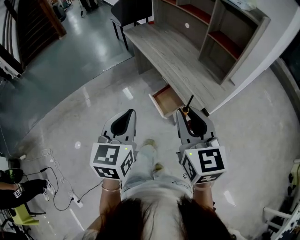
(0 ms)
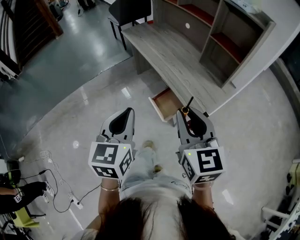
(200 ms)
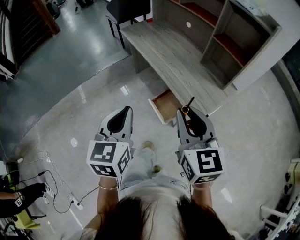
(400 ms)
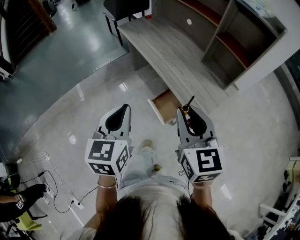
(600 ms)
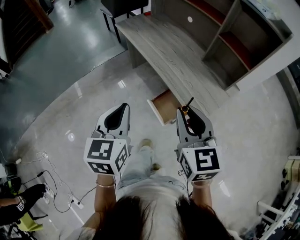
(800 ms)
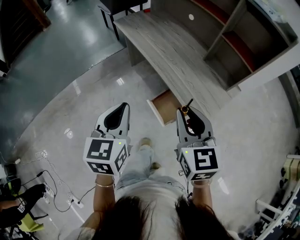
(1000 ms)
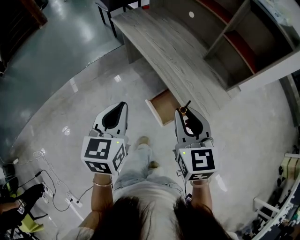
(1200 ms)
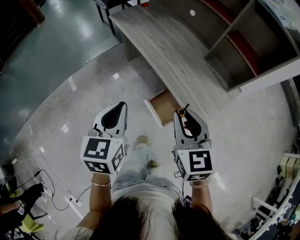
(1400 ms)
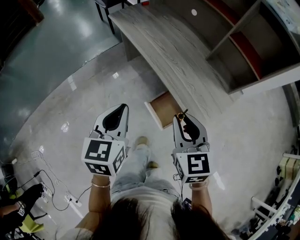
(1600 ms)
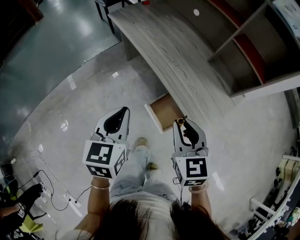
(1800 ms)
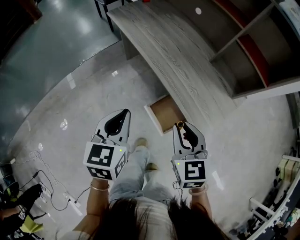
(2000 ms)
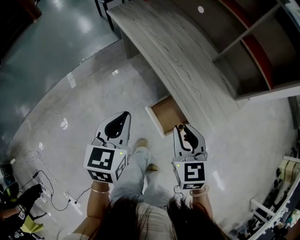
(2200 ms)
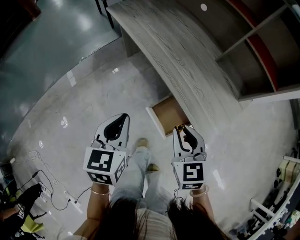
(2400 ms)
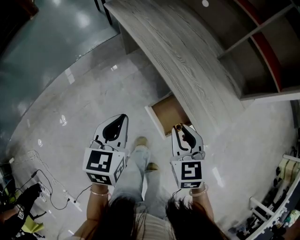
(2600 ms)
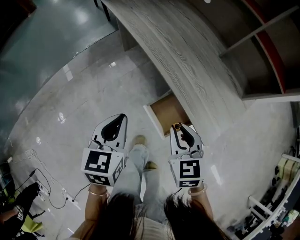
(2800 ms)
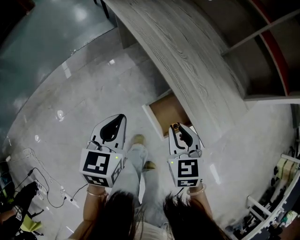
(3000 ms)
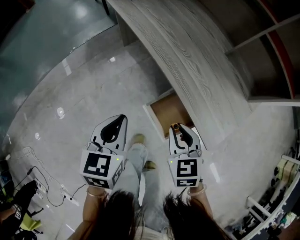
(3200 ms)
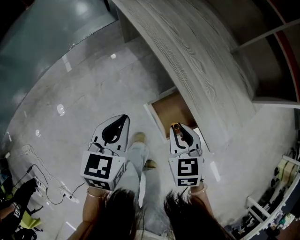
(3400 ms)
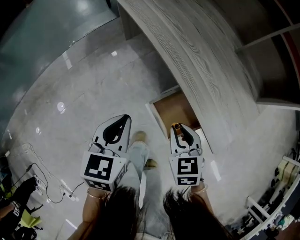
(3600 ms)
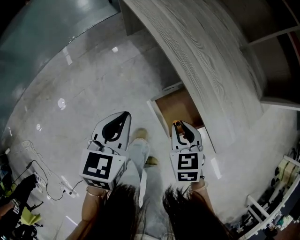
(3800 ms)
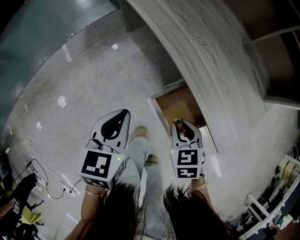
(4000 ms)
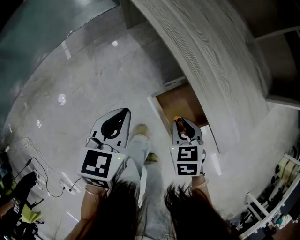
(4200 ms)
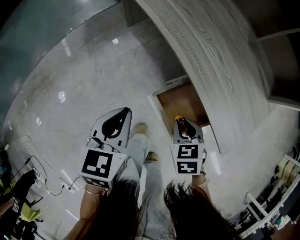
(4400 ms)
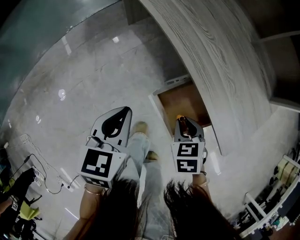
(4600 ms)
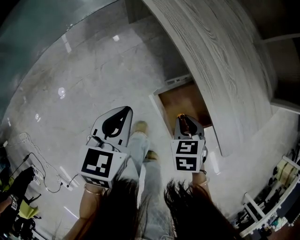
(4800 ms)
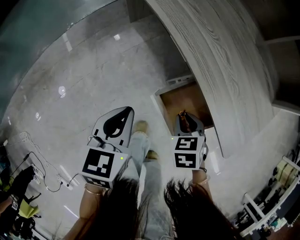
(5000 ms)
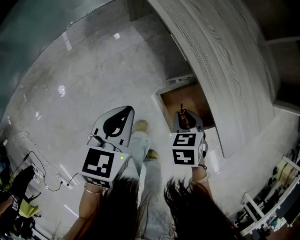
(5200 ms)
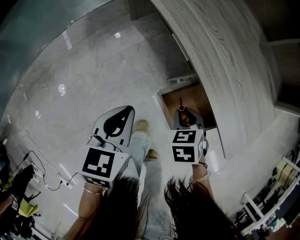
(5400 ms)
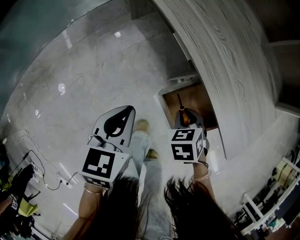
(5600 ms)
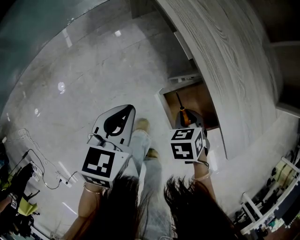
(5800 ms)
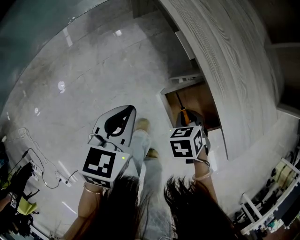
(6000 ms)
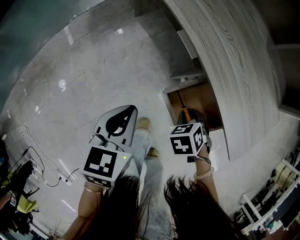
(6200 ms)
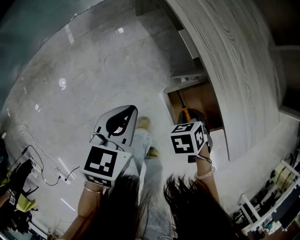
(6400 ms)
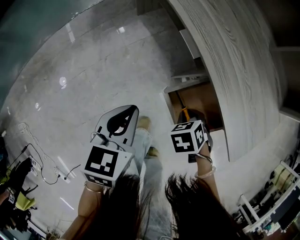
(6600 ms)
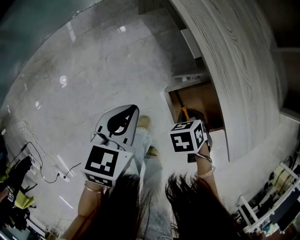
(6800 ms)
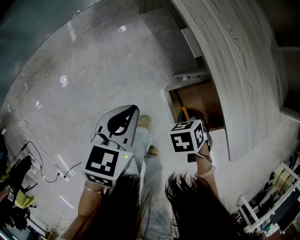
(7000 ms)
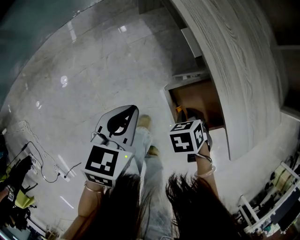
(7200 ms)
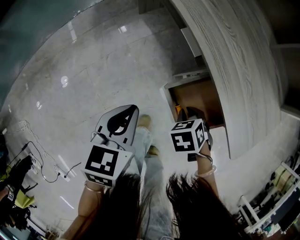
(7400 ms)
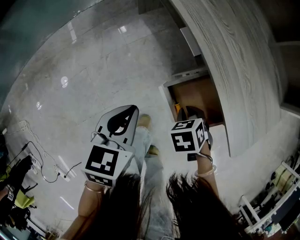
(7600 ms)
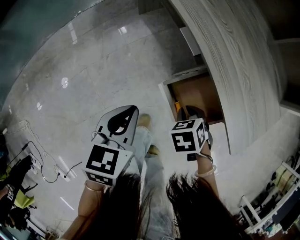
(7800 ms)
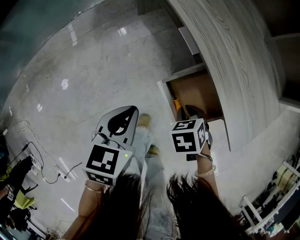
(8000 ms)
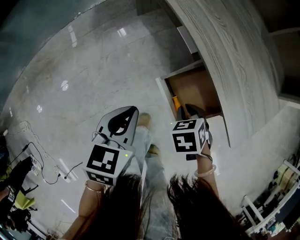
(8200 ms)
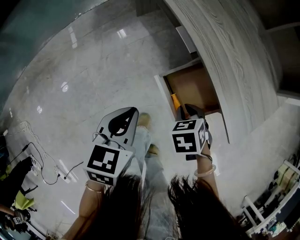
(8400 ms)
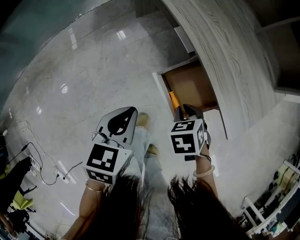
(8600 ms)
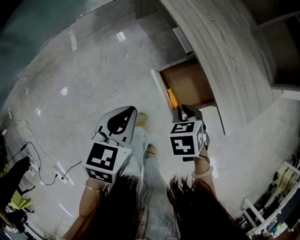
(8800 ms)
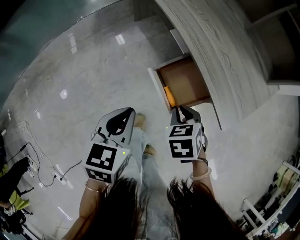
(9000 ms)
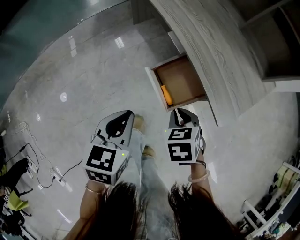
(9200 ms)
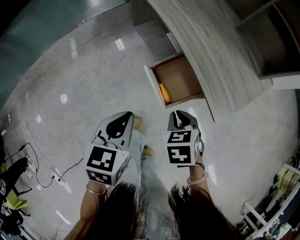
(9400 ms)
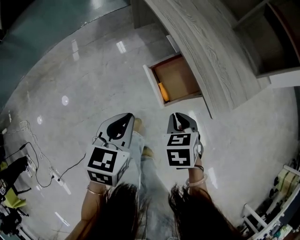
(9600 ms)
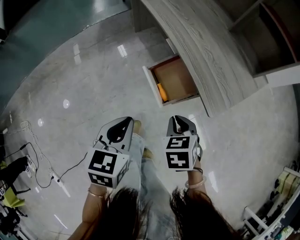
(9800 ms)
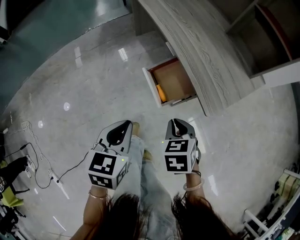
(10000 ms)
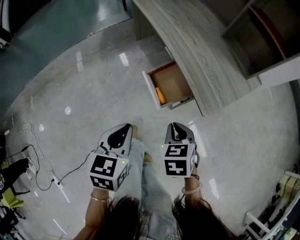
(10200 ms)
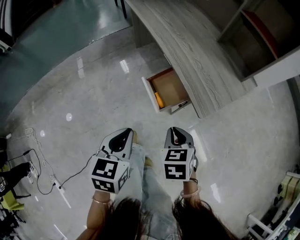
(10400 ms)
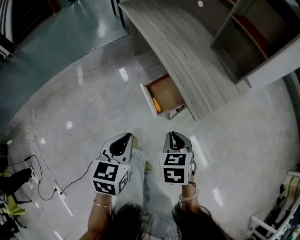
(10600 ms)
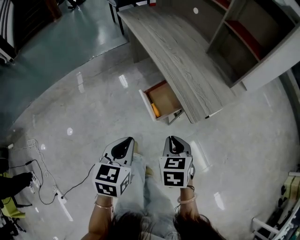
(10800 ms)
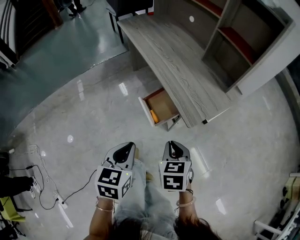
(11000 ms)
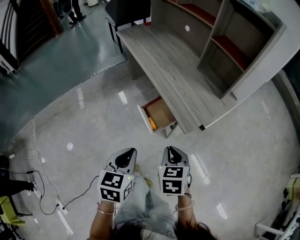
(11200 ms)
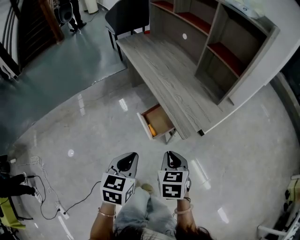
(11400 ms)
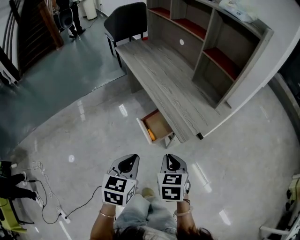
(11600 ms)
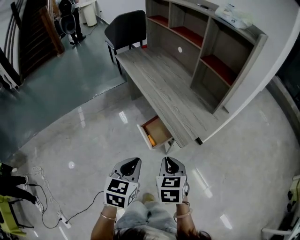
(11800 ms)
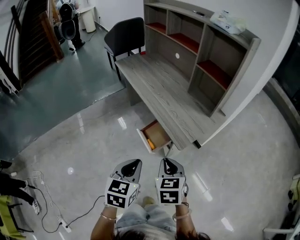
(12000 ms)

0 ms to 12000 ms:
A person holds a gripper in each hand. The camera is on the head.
0 ms to 1600 ms: The two grippers go roughly 20 cm forward and downward.
1600 ms to 3000 ms: The two grippers go about 15 cm downward.
3000 ms to 4400 ms: The left gripper travels downward by some 10 cm. The right gripper goes about 15 cm downward, and swivels approximately 20 degrees.
4400 ms to 6000 ms: The right gripper heads downward, covering roughly 5 cm.
6000 ms to 7600 ms: The grippers move only a little.
7600 ms to 9000 ms: The right gripper is displaced upward by approximately 5 cm, while the left gripper ends up roughly 10 cm from where it was.
9000 ms to 10400 ms: The right gripper moves upward and backward, some 15 cm; the left gripper travels backward and upward by roughly 15 cm.
10400 ms to 12000 ms: The grippers both shift upward by some 15 cm.

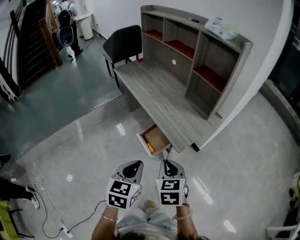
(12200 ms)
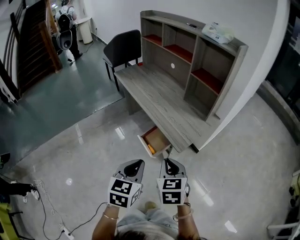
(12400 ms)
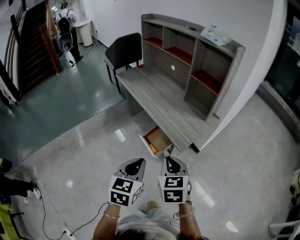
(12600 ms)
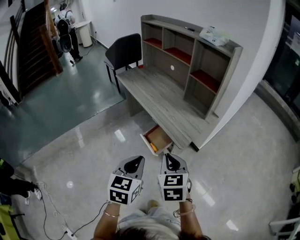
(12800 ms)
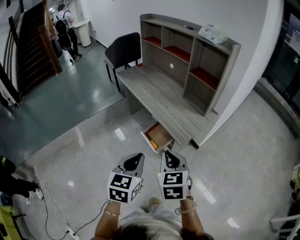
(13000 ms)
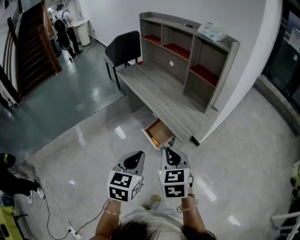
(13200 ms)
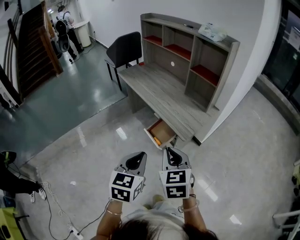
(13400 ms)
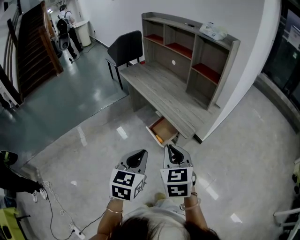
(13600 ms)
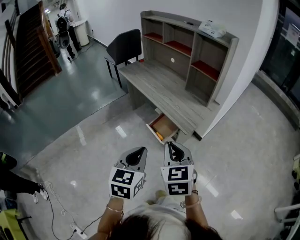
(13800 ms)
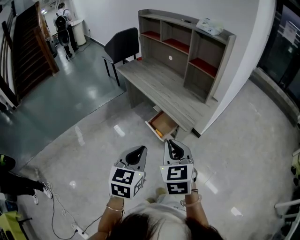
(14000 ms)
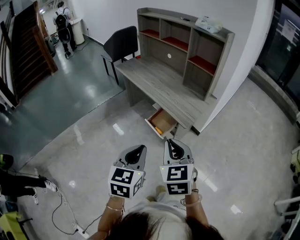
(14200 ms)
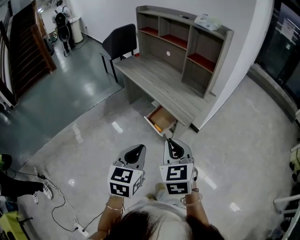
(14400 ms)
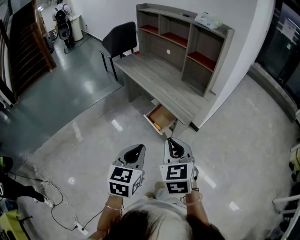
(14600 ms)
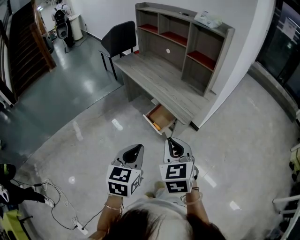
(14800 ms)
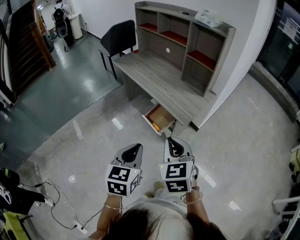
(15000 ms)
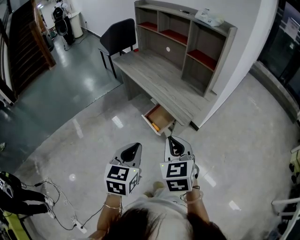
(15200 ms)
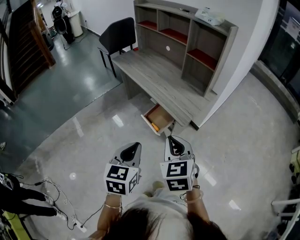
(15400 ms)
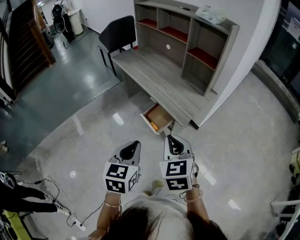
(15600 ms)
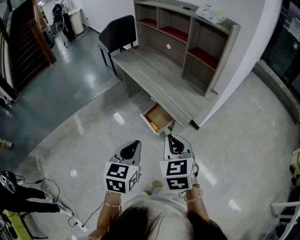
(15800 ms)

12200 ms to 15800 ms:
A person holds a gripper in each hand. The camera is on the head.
12200 ms to 14000 ms: The right gripper moves upward, backward and to the left, roughly 20 cm, while the left gripper is displaced backward, upward and to the left by roughly 15 cm.
14000 ms to 15800 ms: The left gripper moves approximately 5 cm. The right gripper changes place by approximately 5 cm.

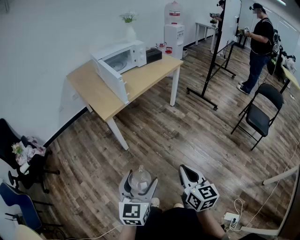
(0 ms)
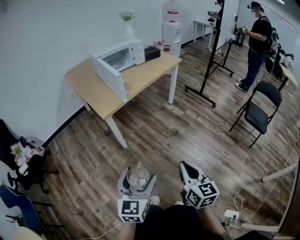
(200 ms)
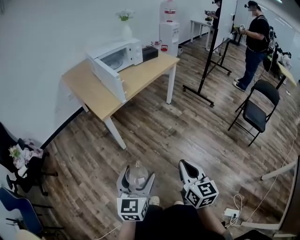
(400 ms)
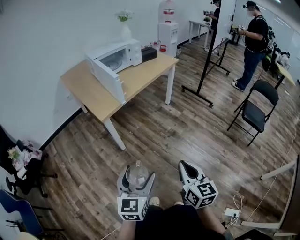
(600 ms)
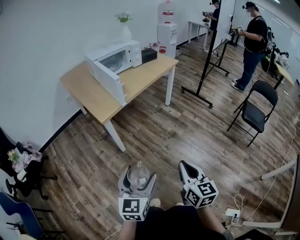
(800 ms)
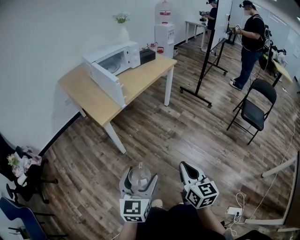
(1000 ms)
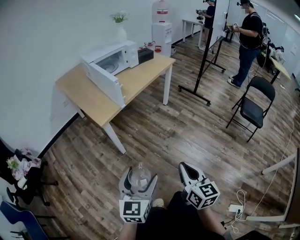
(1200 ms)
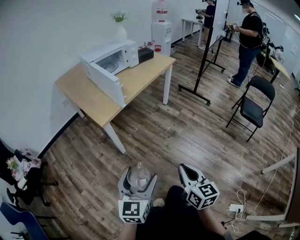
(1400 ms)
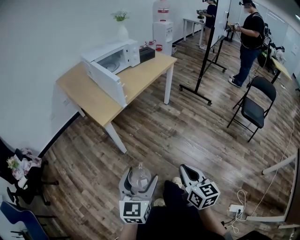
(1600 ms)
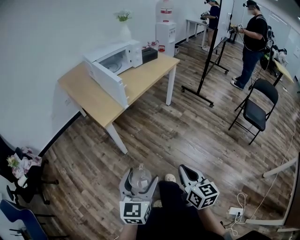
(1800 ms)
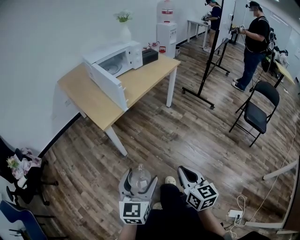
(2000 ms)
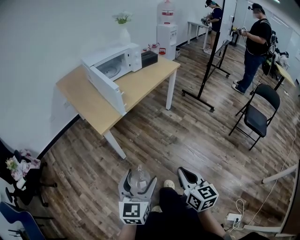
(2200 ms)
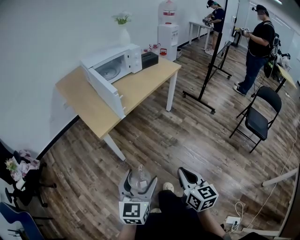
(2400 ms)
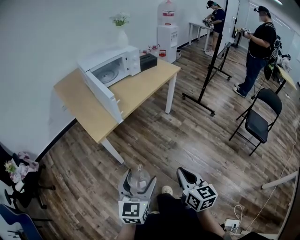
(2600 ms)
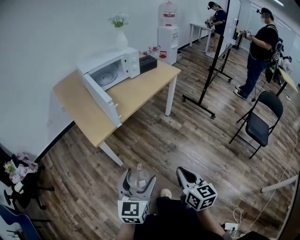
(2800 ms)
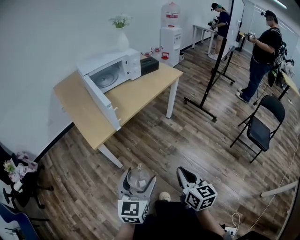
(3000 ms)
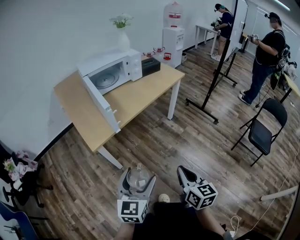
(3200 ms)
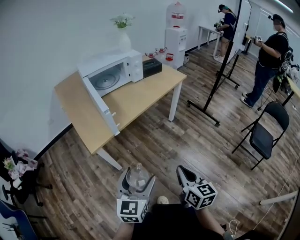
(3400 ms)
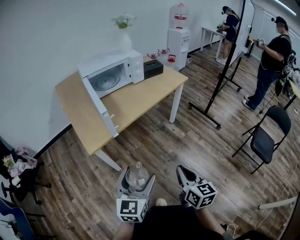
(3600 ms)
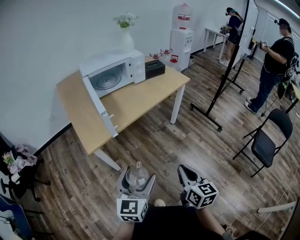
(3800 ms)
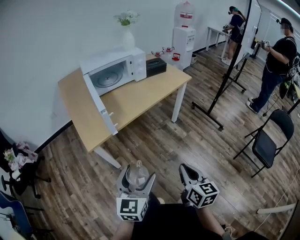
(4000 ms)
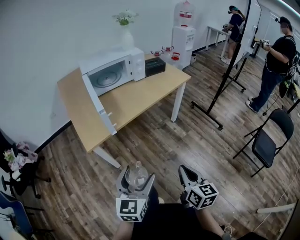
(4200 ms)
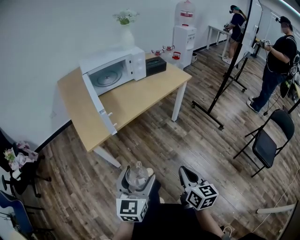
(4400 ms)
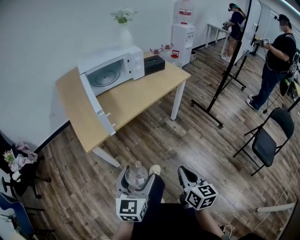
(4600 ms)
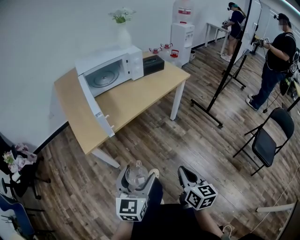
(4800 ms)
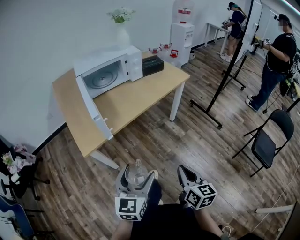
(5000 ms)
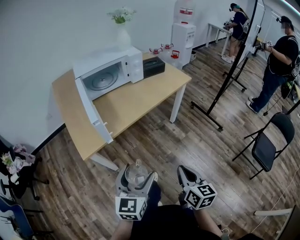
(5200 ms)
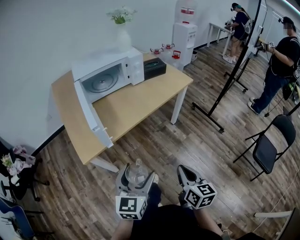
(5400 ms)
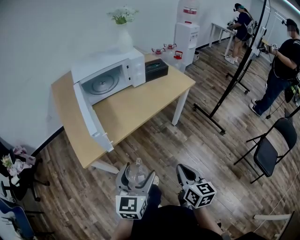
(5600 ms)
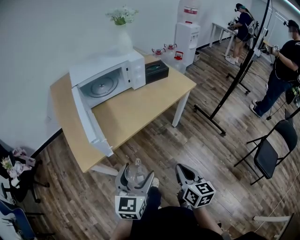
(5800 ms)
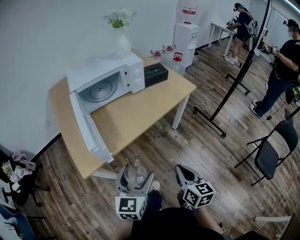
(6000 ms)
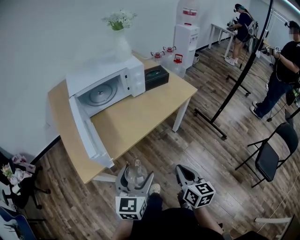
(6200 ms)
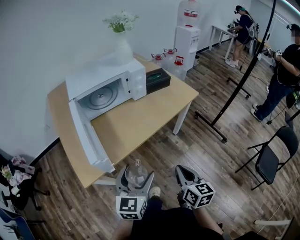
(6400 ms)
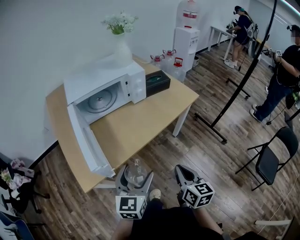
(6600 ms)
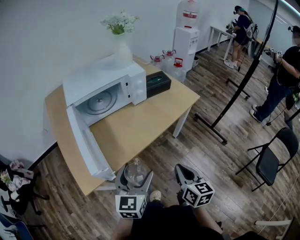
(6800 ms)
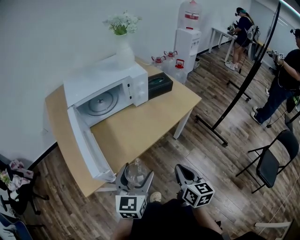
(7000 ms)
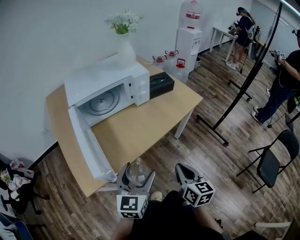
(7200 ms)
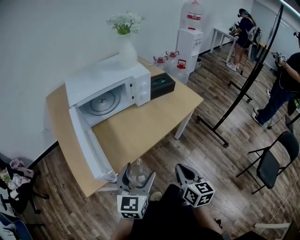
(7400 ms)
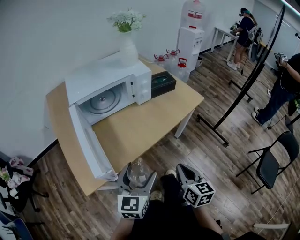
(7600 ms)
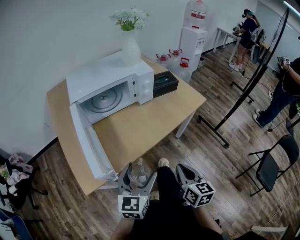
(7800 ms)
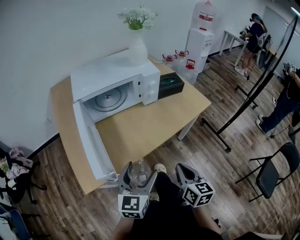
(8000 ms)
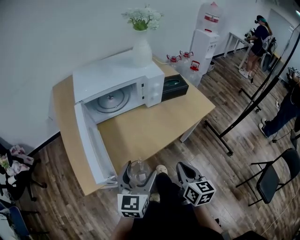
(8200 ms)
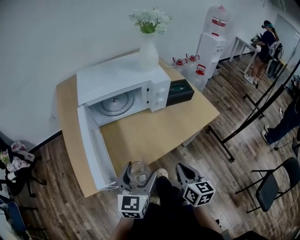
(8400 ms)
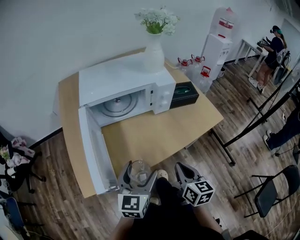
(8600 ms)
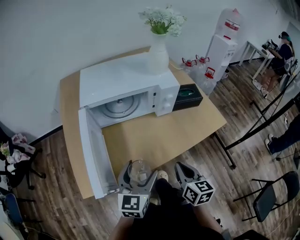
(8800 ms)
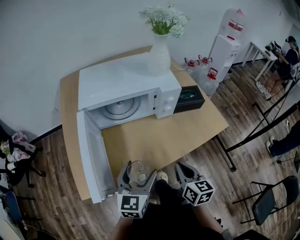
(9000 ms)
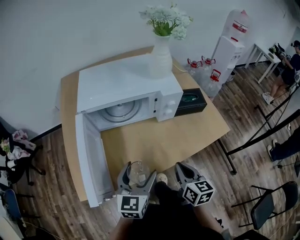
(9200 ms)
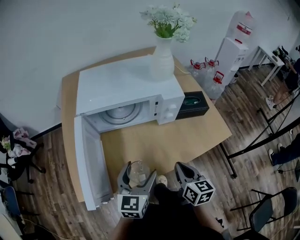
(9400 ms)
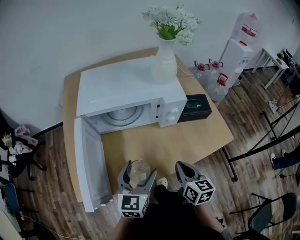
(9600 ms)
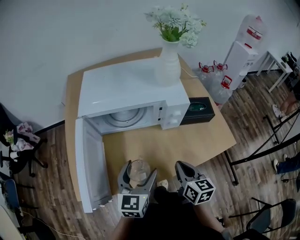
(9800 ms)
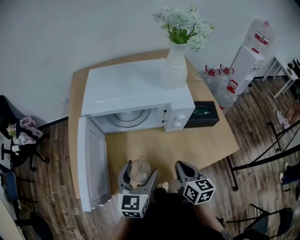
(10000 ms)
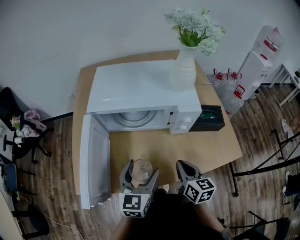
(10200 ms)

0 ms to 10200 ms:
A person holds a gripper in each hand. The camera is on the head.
0 ms to 1400 ms: The left gripper heads forward and to the left, covering approximately 5 cm; the right gripper moves some 5 cm.
1400 ms to 3000 ms: The grippers both shift forward by approximately 20 cm.
3000 ms to 4400 ms: Both grippers move forward and to the right, roughly 10 cm.
4400 ms to 5800 ms: Both grippers travel together forward, roughly 15 cm.
5800 ms to 7200 ms: Both grippers move forward, roughly 15 cm.
7200 ms to 8800 ms: Both grippers move forward, about 15 cm.
8800 ms to 10200 ms: The grippers both shift forward by roughly 10 cm.
